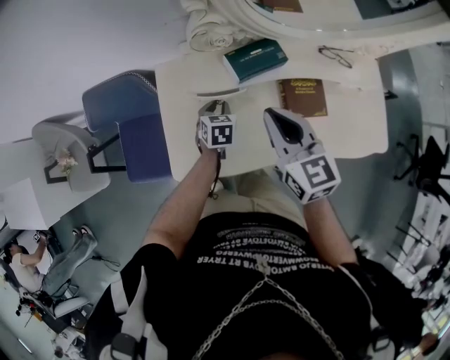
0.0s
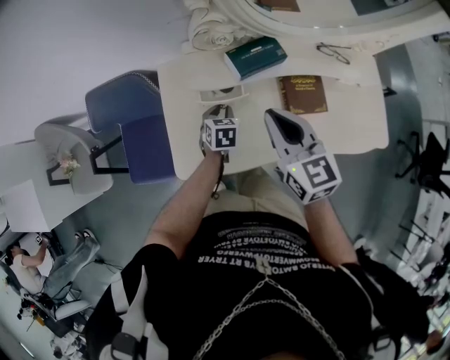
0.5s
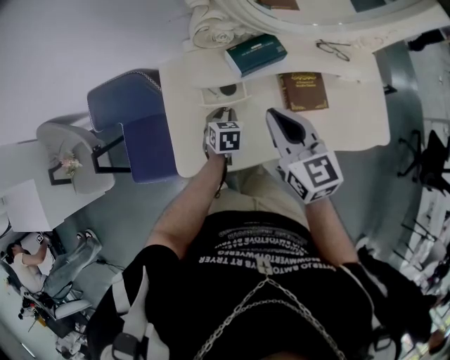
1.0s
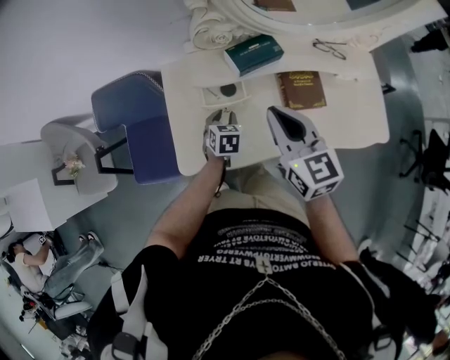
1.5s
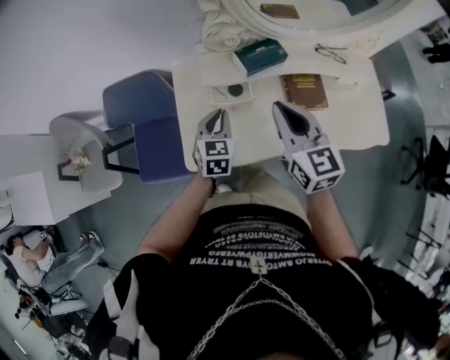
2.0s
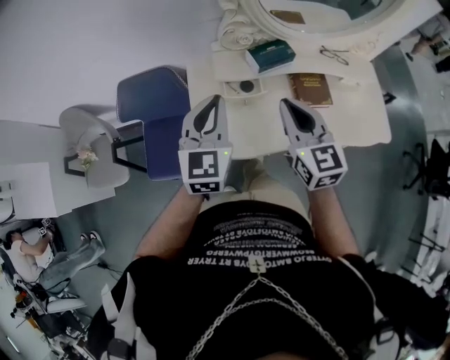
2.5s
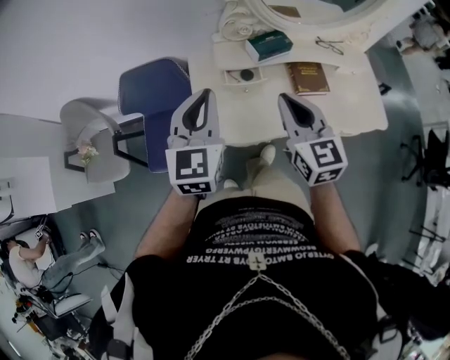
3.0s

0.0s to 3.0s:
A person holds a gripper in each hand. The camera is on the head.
0.0s to 1.5s: The left gripper travels backward by approximately 5 cm.
1.5s to 3.0s: The right gripper shifts some 15 cm backward, upward and to the left. Meanwhile the left gripper goes approximately 35 cm upward, points its fingers some 40 degrees further upward, and closes its fingers.

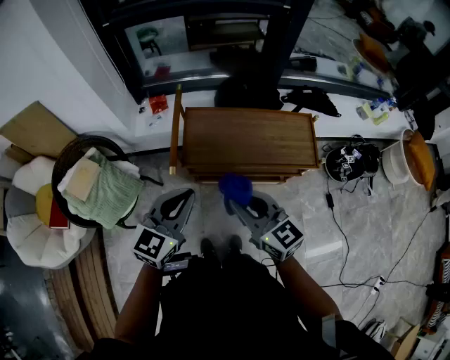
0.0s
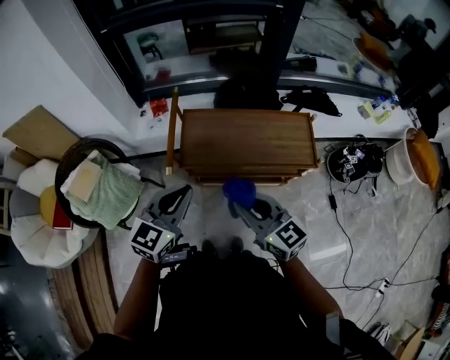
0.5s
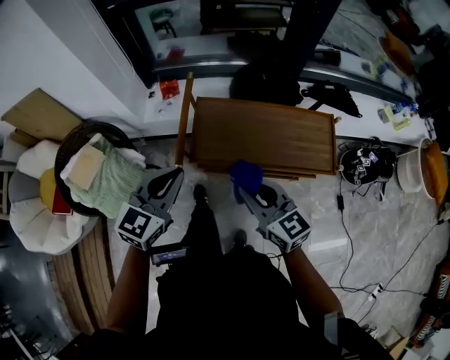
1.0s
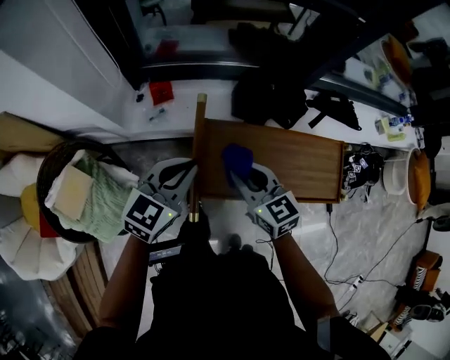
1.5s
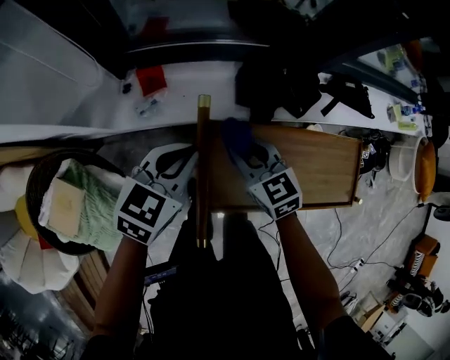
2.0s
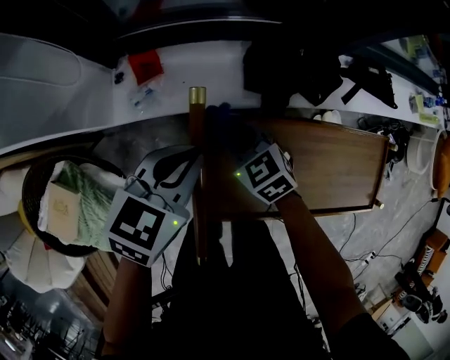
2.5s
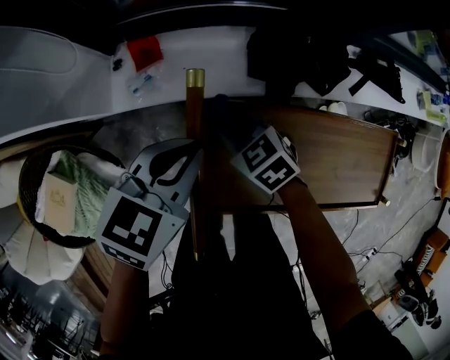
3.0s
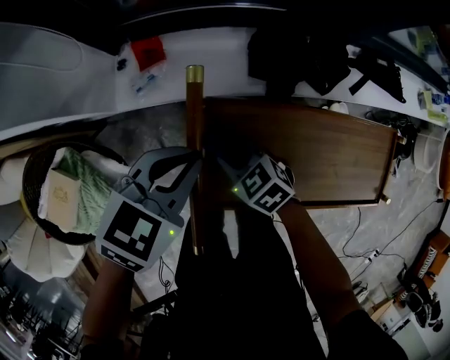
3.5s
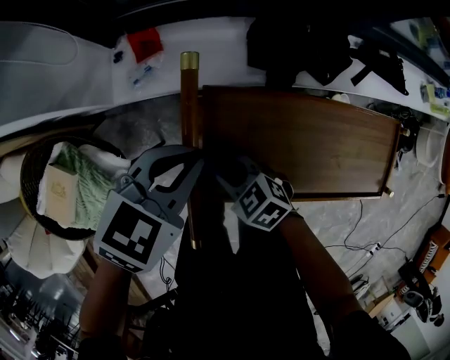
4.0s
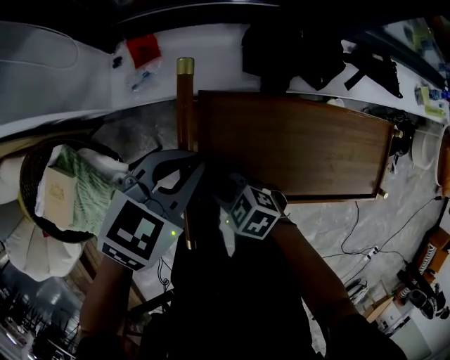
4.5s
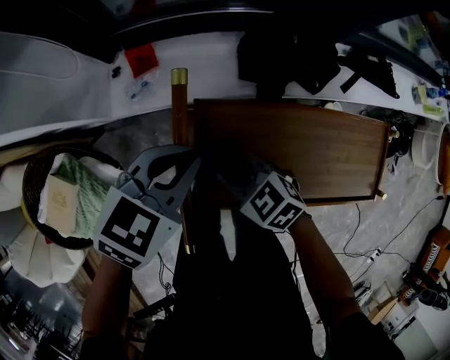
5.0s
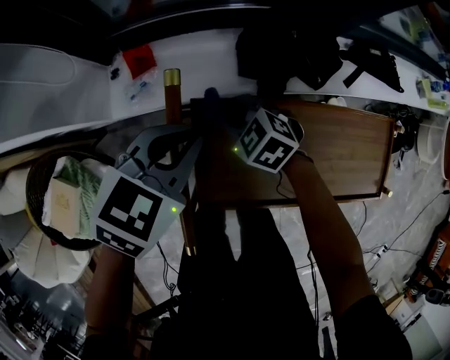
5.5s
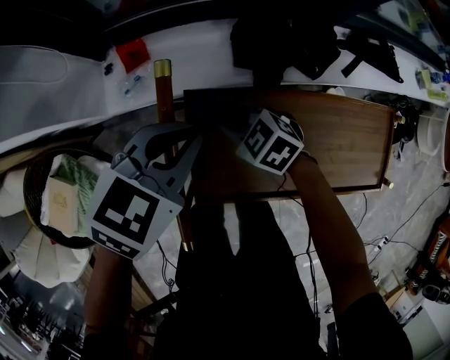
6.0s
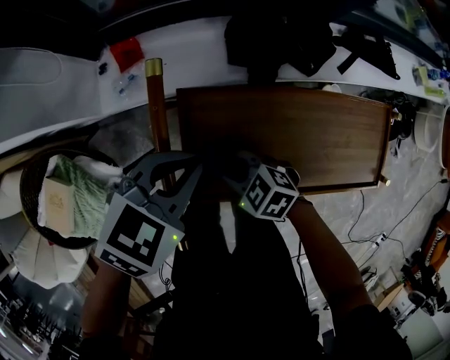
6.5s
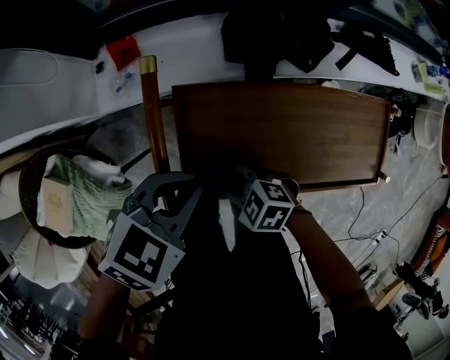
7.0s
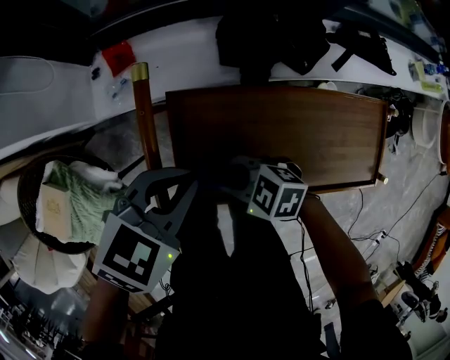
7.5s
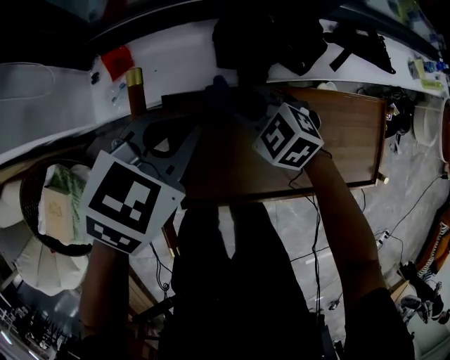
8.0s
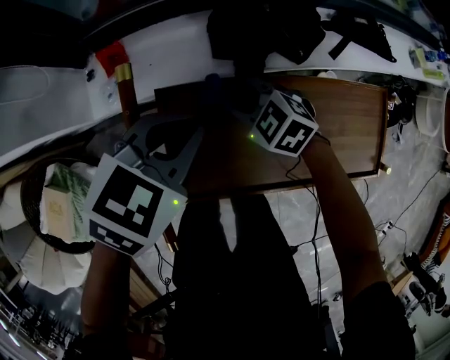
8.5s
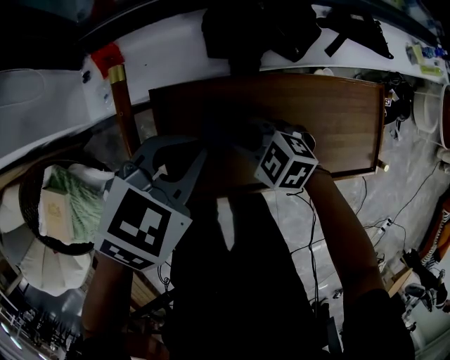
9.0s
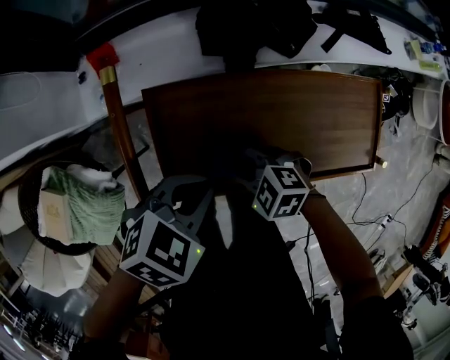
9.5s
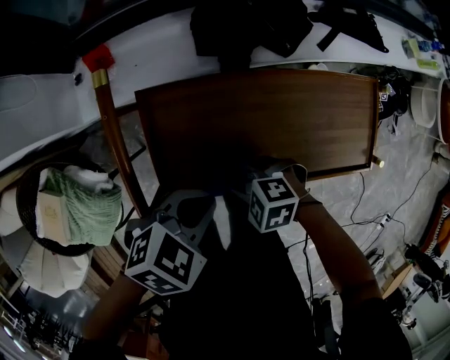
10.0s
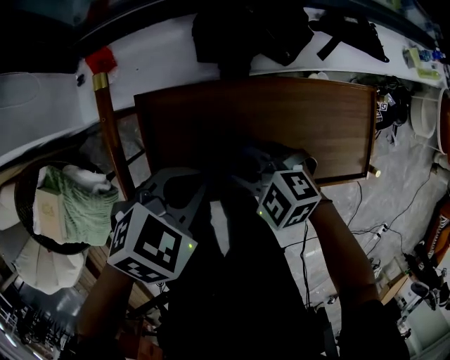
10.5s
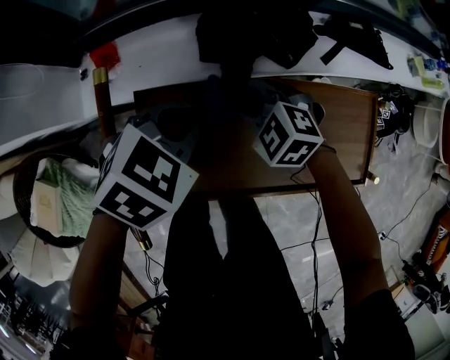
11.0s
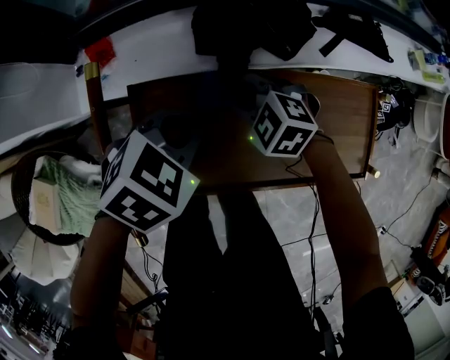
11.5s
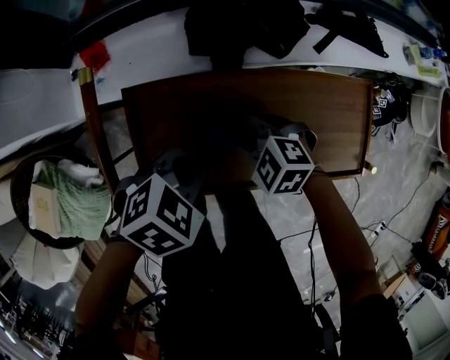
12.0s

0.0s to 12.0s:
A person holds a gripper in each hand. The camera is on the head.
0.0s to 2.0s: The right gripper travels forward and downward by approximately 50 cm, and rotates some 30 degrees. The left gripper shifts some 40 cm forward, and rotates roughly 20 degrees.
2.0s to 4.0s: The left gripper moves downward, approximately 5 cm. Meanwhile the right gripper heads downward, covering some 15 cm, and swivels about 30 degrees.
4.0s to 6.0s: The left gripper changes place by approximately 5 cm. The right gripper moves roughly 15 cm.
8.0s to 10.0s: The right gripper changes place by some 25 cm, and turns by about 30 degrees. The left gripper ends up about 20 cm from where it was, and swivels approximately 20 degrees.

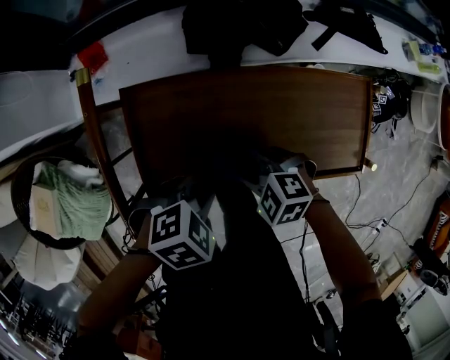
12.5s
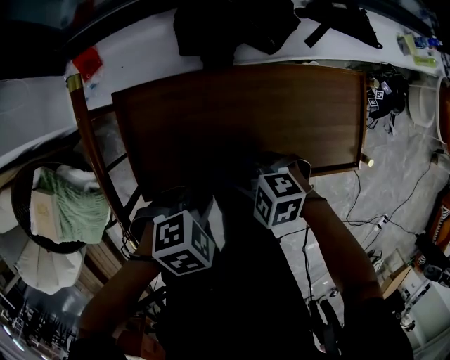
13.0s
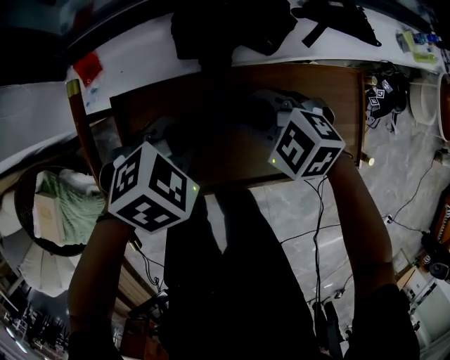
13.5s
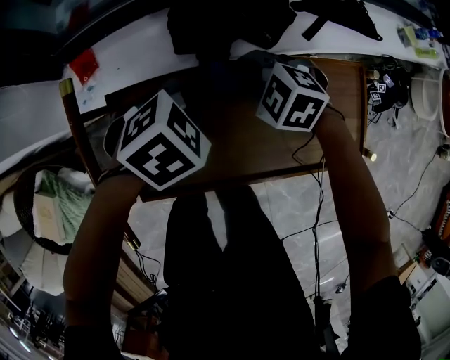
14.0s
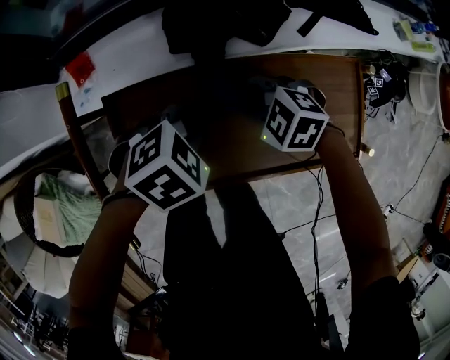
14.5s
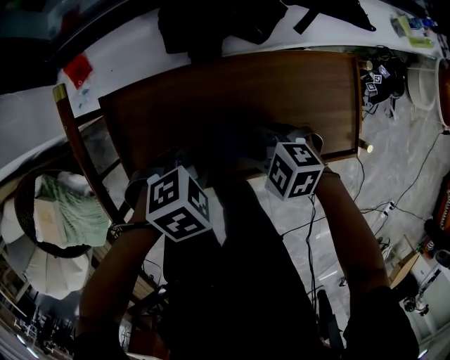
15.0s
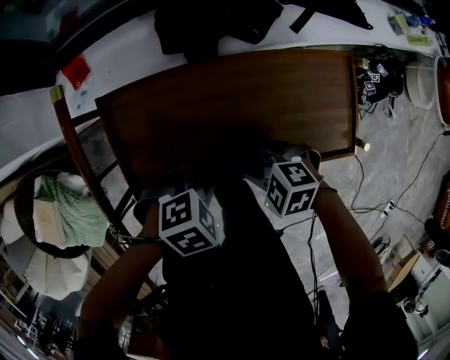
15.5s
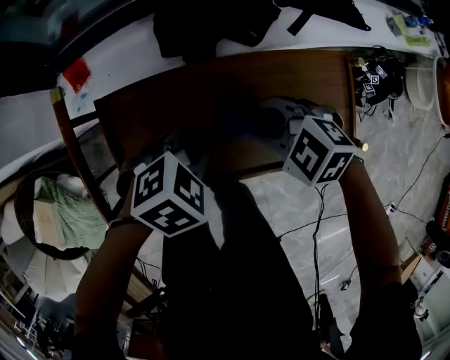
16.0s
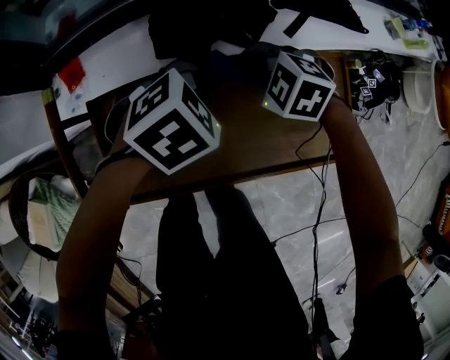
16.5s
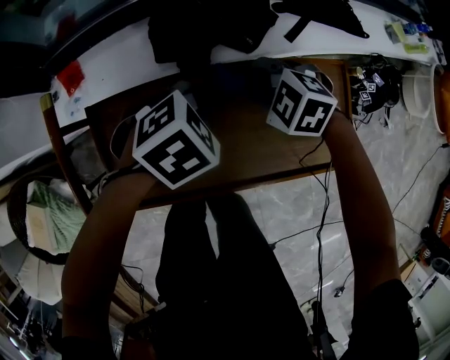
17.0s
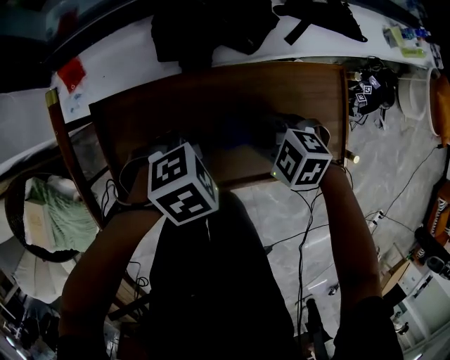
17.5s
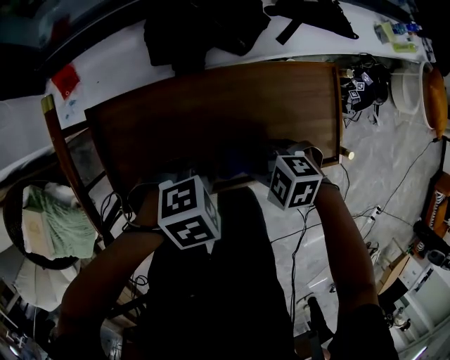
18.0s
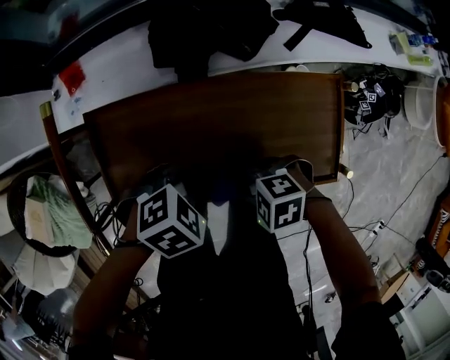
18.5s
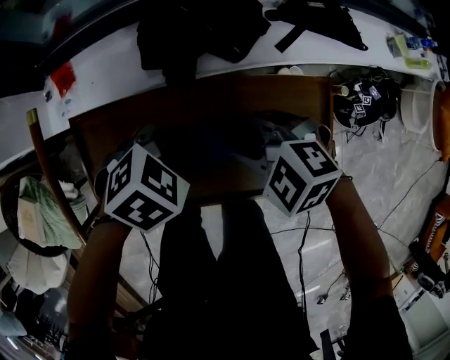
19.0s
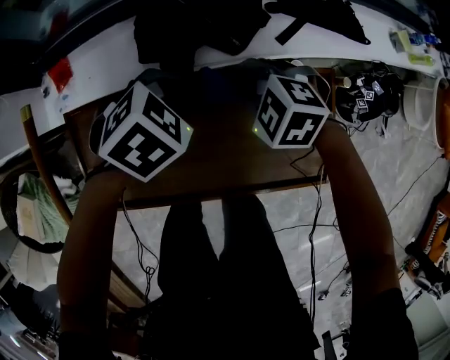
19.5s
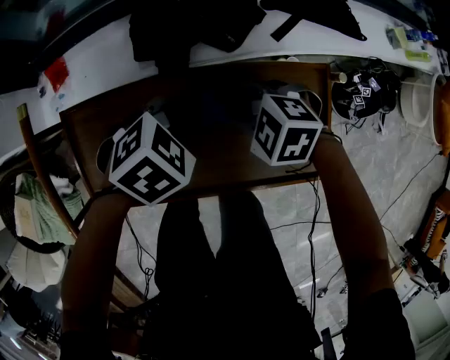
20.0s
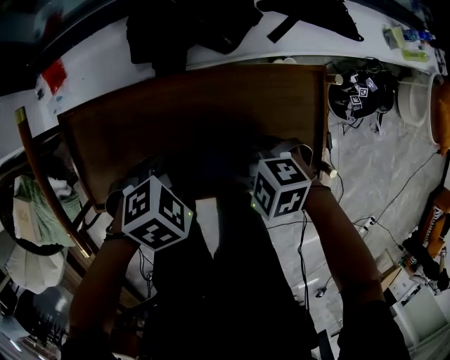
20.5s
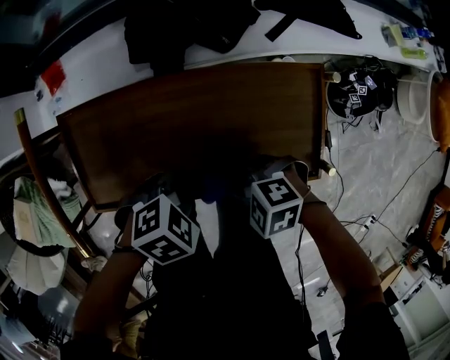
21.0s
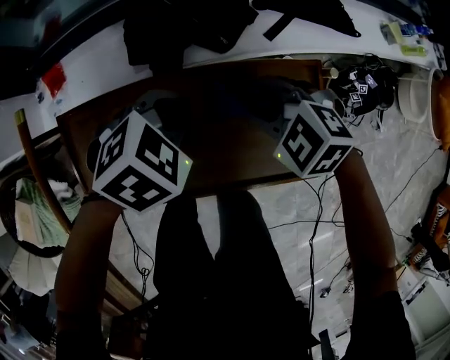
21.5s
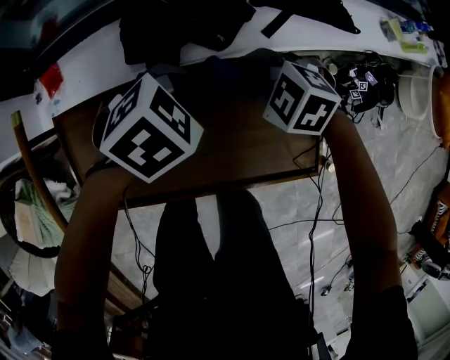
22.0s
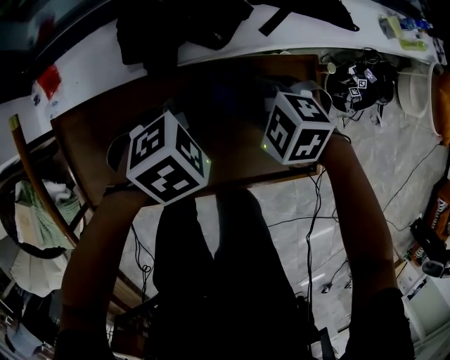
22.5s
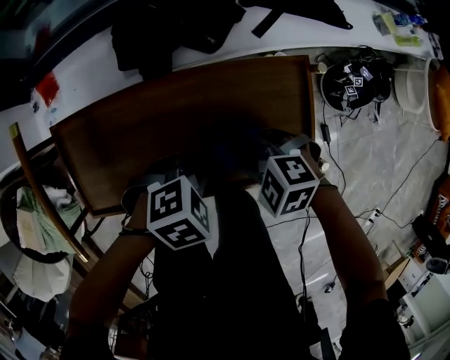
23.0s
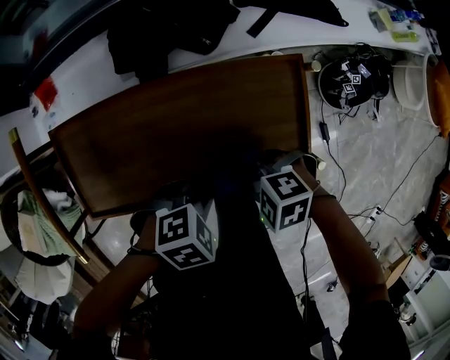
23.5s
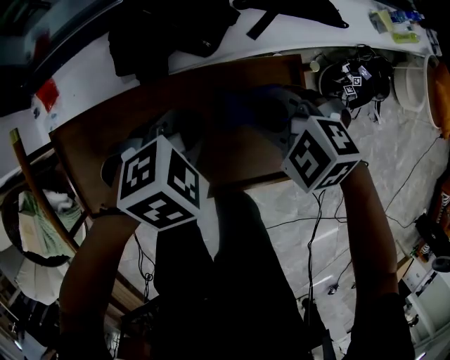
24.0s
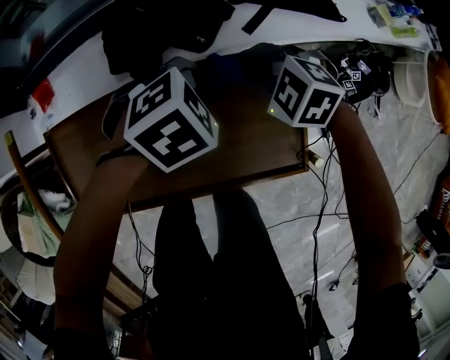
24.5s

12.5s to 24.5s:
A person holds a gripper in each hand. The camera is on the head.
12.5s to 14.5s: The right gripper shifts by about 15 cm. The left gripper moves approximately 15 cm.
16.5s to 18.5s: The left gripper moves approximately 15 cm. Meanwhile the right gripper moves approximately 25 cm, and swivels roughly 30 degrees.
20.5s to 22.5s: The right gripper moves roughly 15 cm. Meanwhile the left gripper changes place by some 10 cm.
